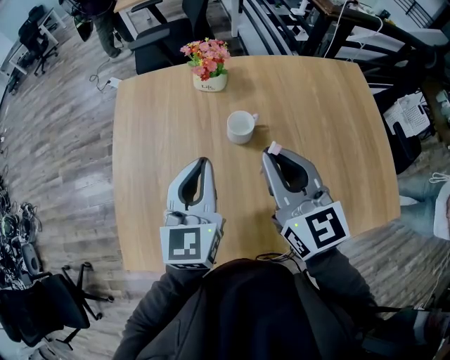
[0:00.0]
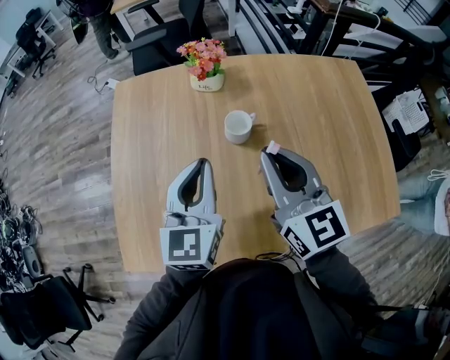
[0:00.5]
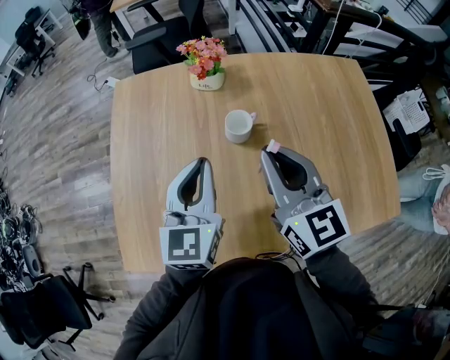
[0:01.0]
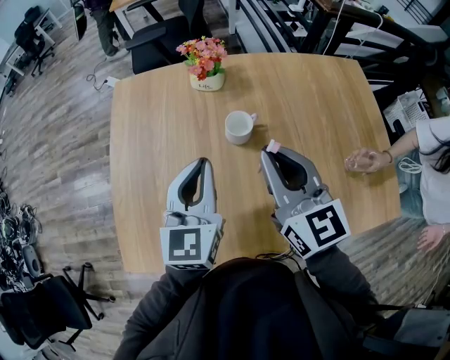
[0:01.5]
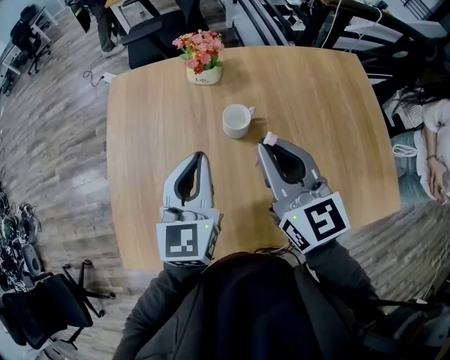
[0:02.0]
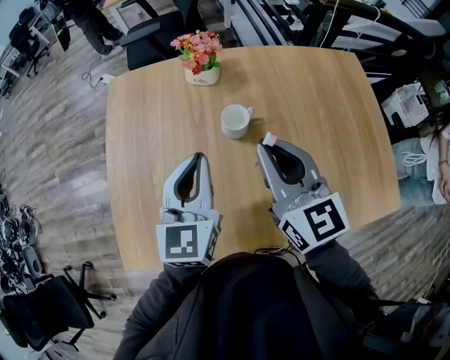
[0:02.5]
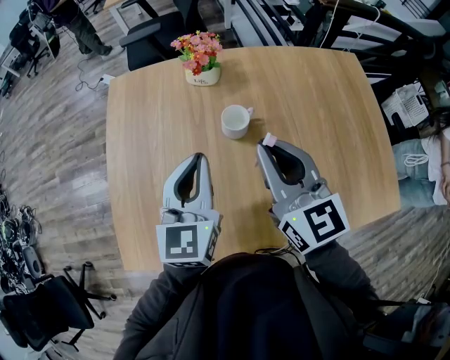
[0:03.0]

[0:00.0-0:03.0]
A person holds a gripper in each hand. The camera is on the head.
0.0 to 3.0 s: Both grippers stay about where they are.

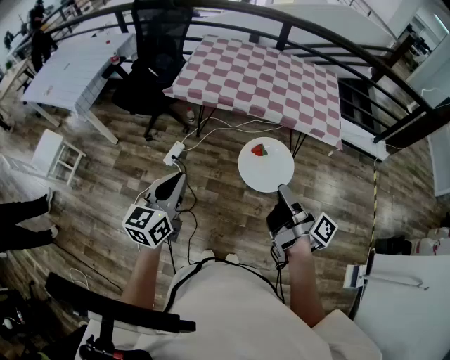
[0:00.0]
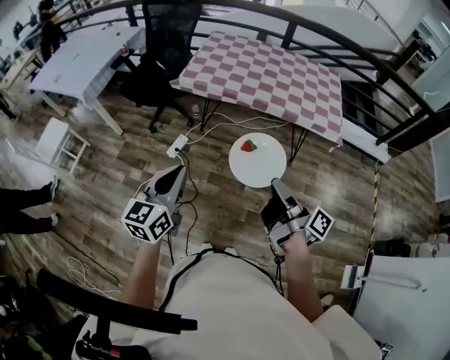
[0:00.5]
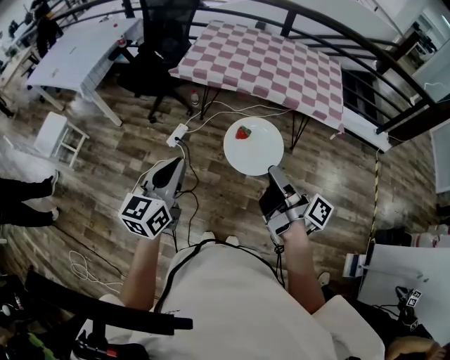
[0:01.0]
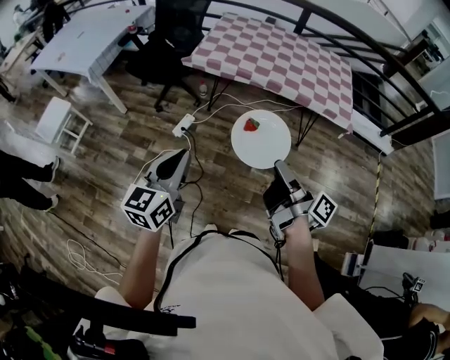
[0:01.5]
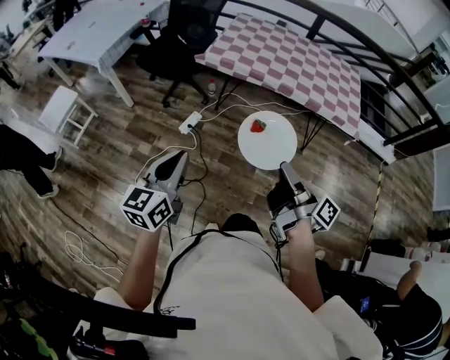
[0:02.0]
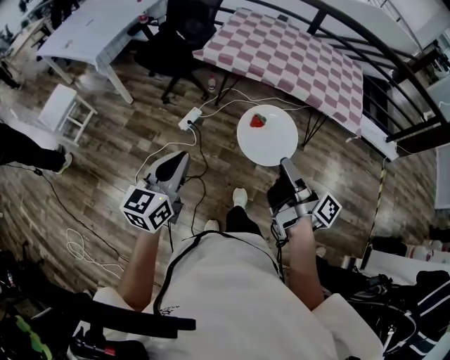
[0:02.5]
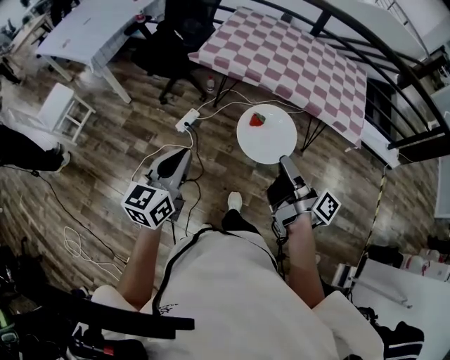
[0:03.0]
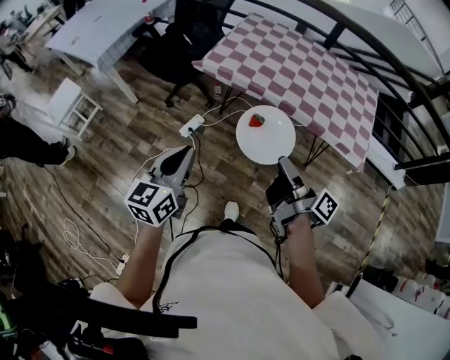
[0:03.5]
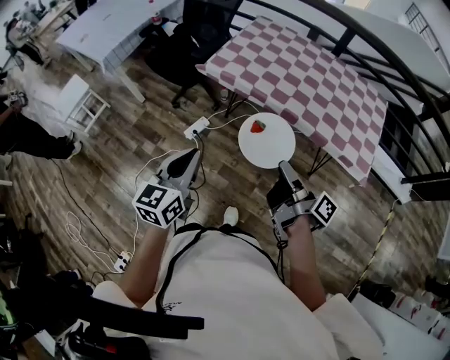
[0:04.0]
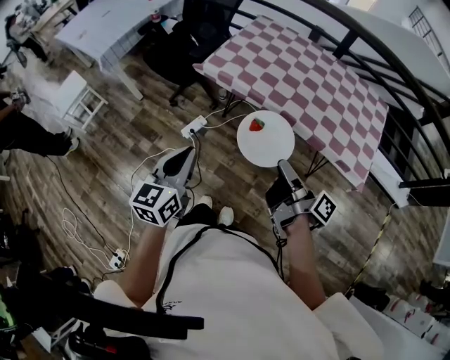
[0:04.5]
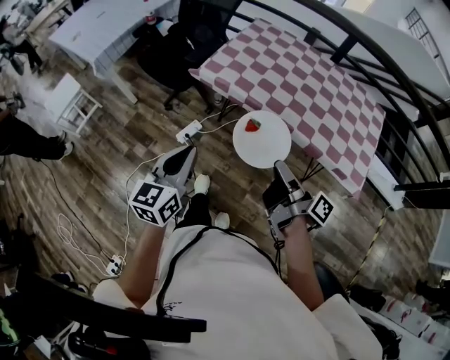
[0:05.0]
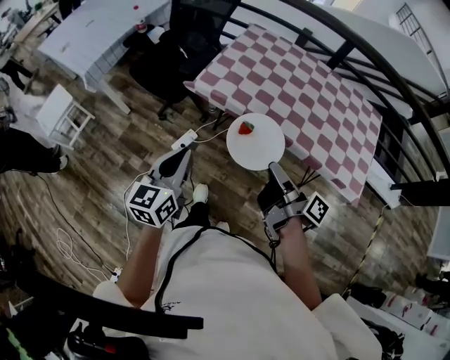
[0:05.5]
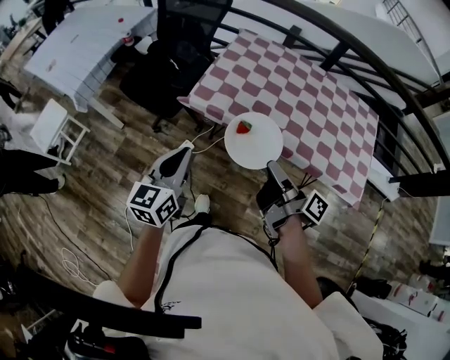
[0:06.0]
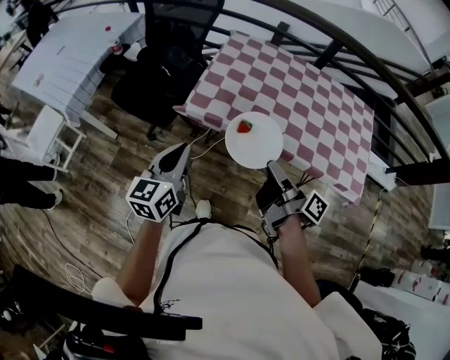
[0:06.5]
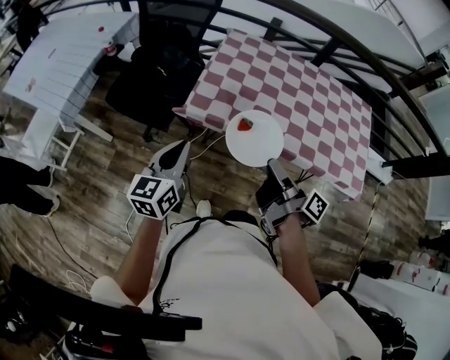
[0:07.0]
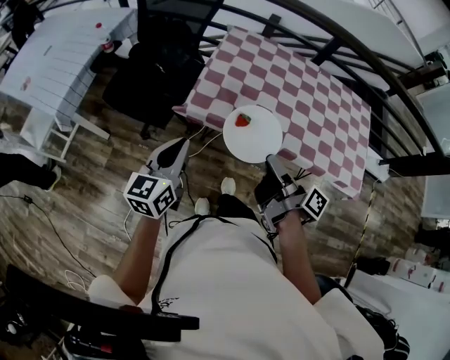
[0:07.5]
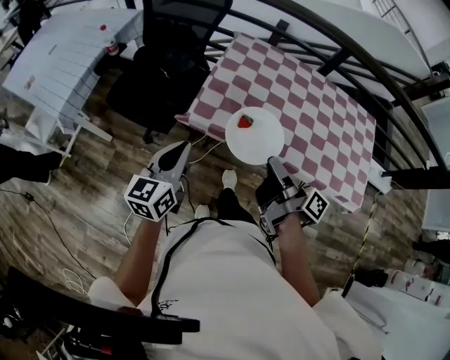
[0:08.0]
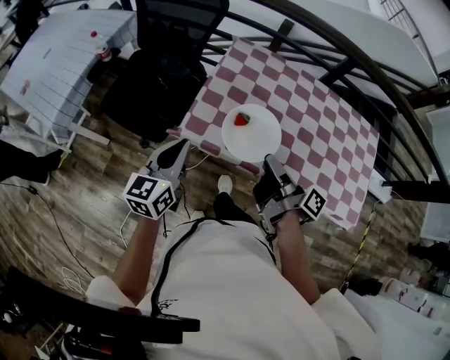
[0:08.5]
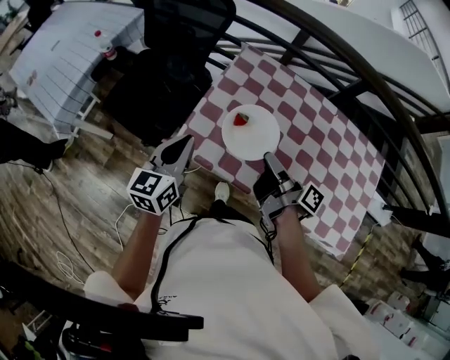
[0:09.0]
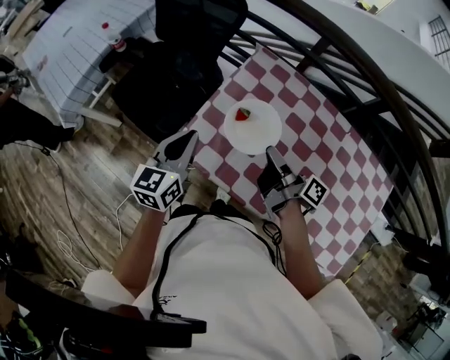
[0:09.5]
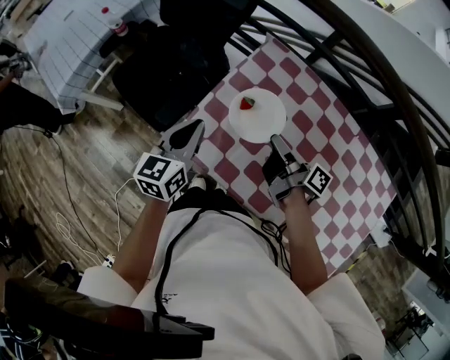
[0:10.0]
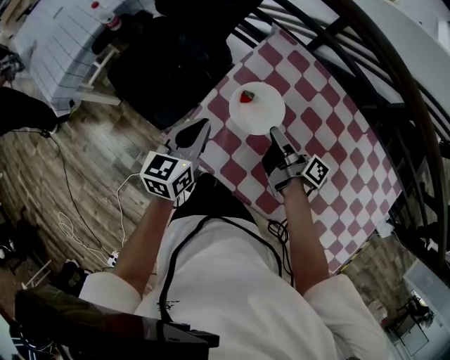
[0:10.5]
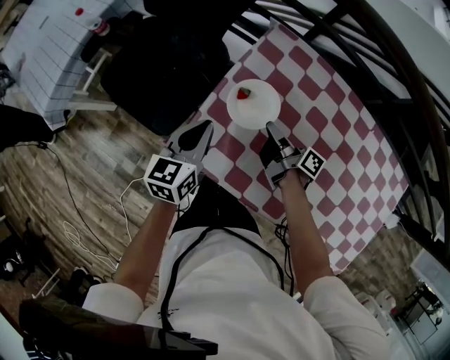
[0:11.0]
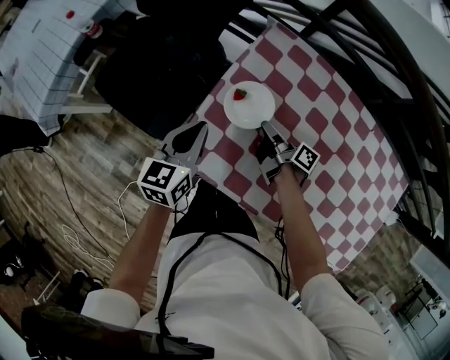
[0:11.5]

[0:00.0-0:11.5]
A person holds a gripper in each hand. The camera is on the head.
0.0 to 2.0 s: The left gripper ends up about 15 cm from where it was.
2.0 to 4.0 s: The left gripper moves roughly 25 cm.
4.0 to 6.0 s: The left gripper changes place by roughly 25 cm.
6.0 to 7.5 s: The left gripper ends up roughly 15 cm from where it was.
7.5 to 9.5 s: The left gripper ends up some 30 cm from where it was.
9.5 to 11.5 s: The left gripper heads downward, covering about 10 cm.

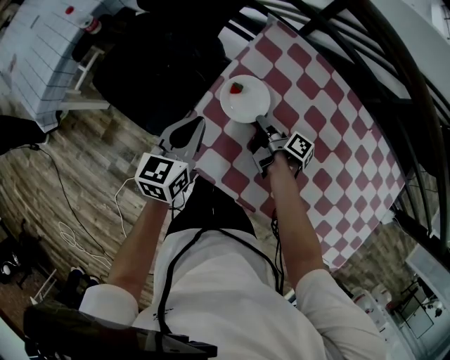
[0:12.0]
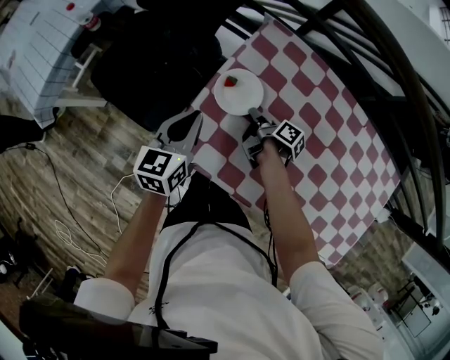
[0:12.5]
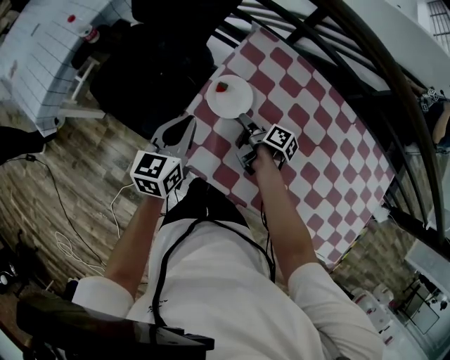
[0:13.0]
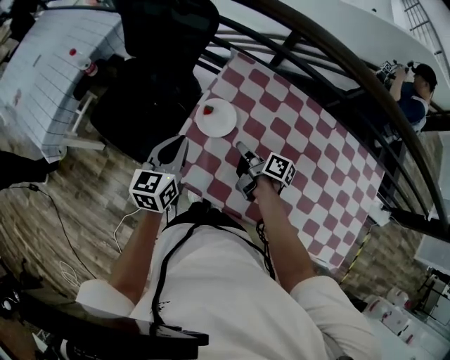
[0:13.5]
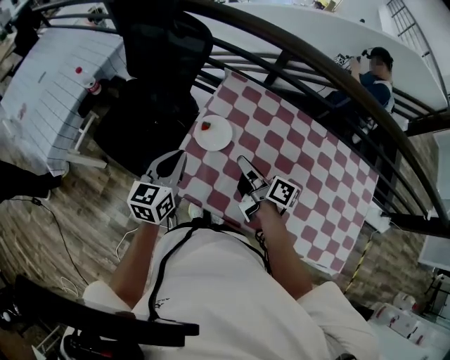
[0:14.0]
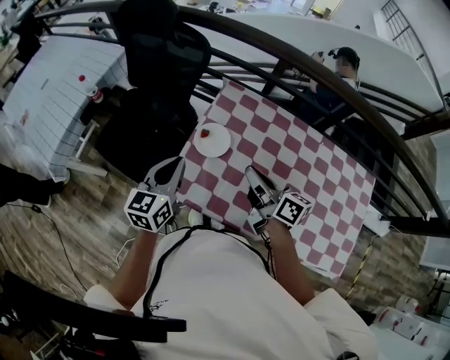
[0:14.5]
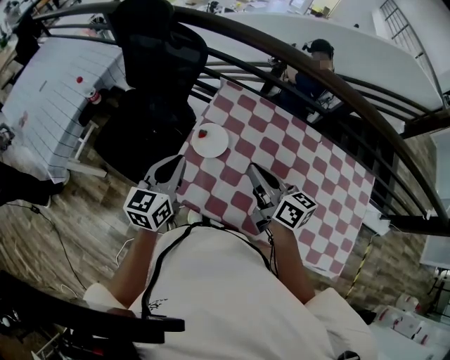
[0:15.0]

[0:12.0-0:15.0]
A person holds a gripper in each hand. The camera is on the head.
12.0 to 13.5 s: The left gripper is displaced upward by approximately 5 cm.
13.5 to 15.0 s: The left gripper moves upward, about 5 cm.

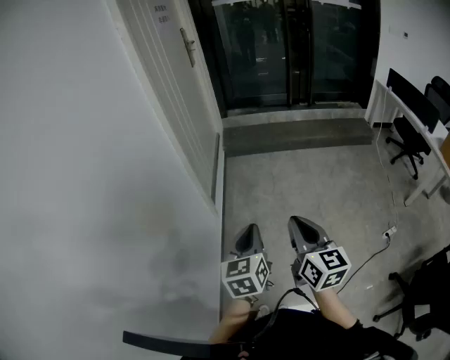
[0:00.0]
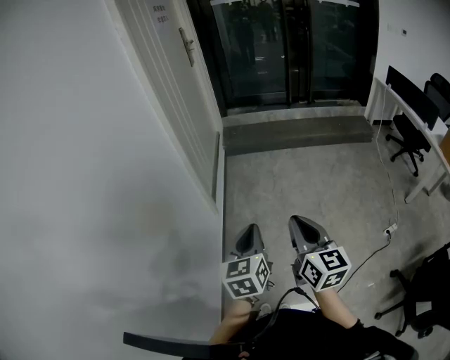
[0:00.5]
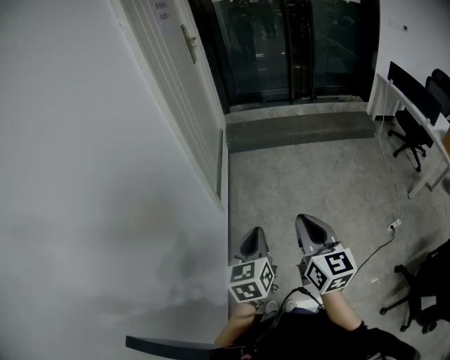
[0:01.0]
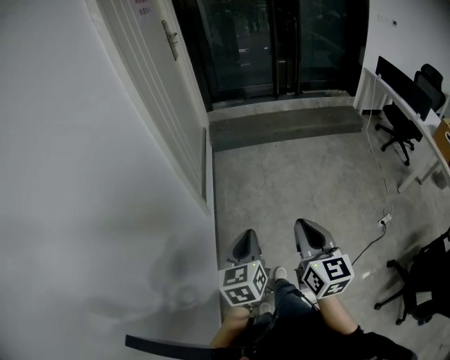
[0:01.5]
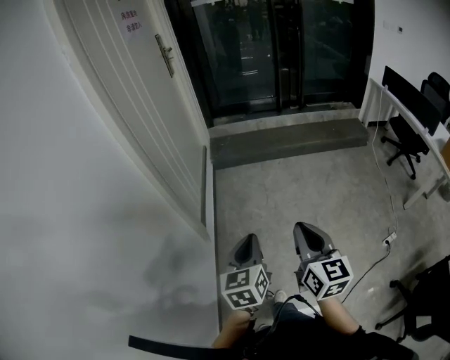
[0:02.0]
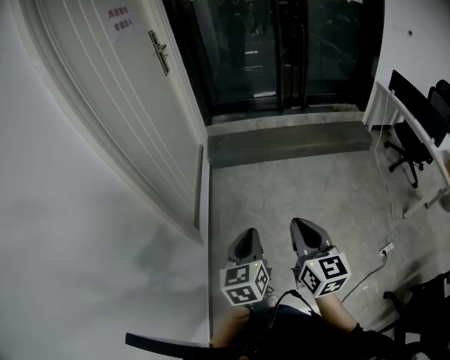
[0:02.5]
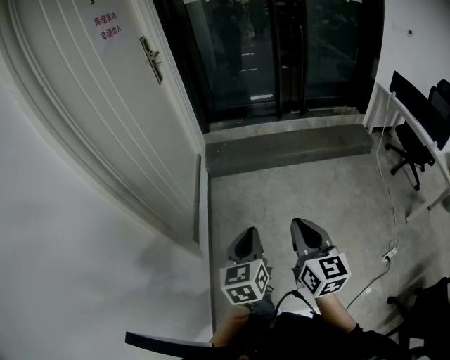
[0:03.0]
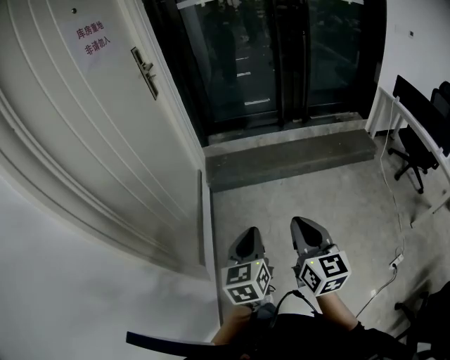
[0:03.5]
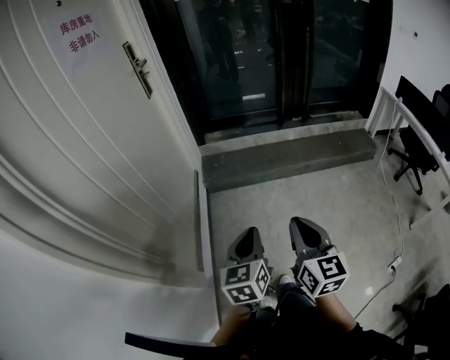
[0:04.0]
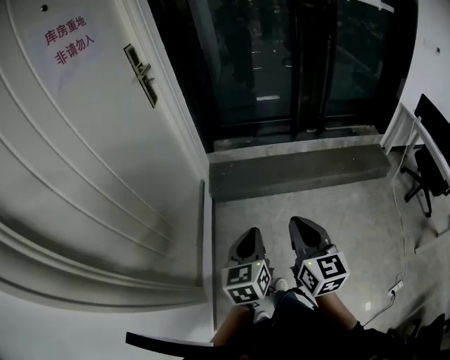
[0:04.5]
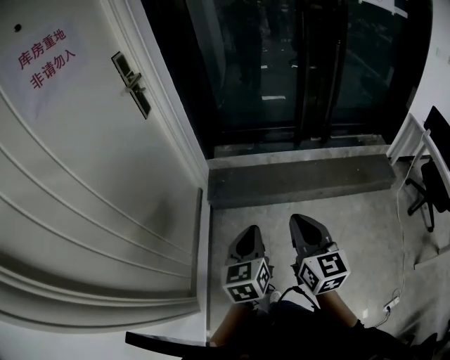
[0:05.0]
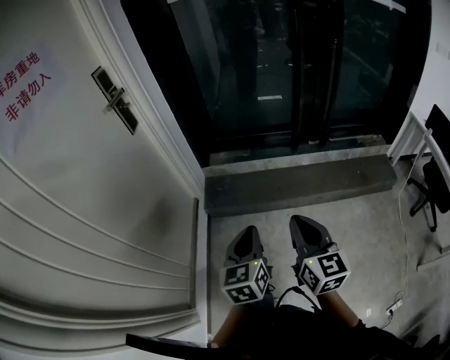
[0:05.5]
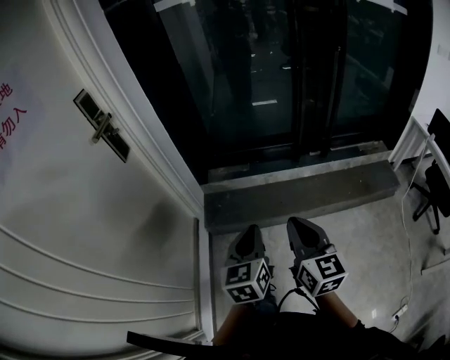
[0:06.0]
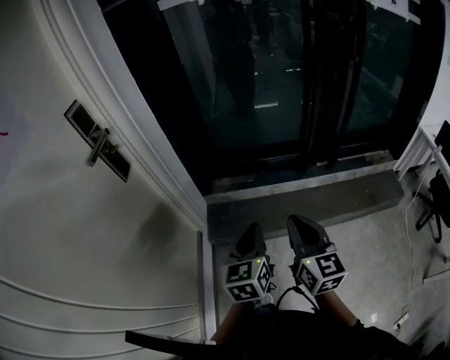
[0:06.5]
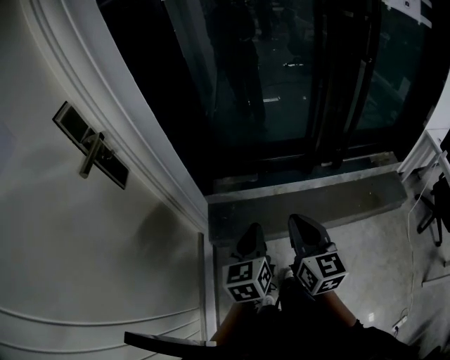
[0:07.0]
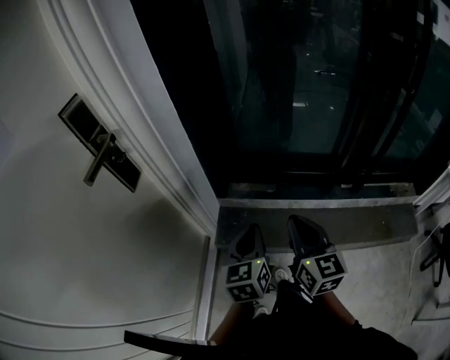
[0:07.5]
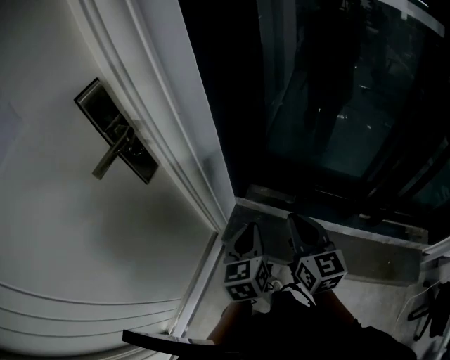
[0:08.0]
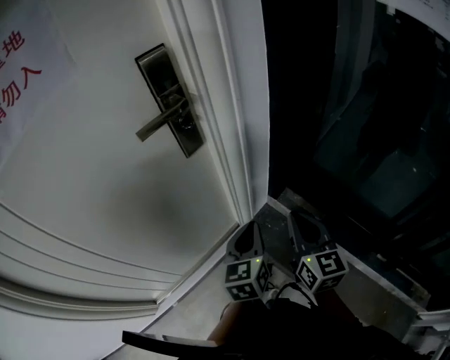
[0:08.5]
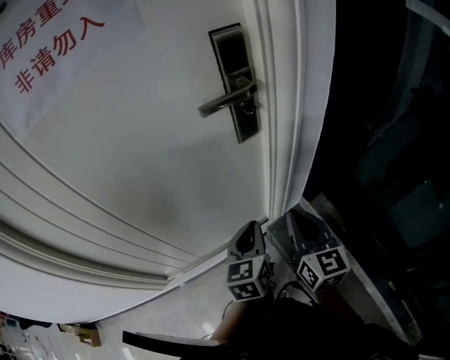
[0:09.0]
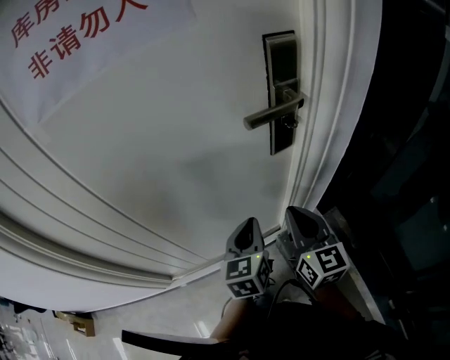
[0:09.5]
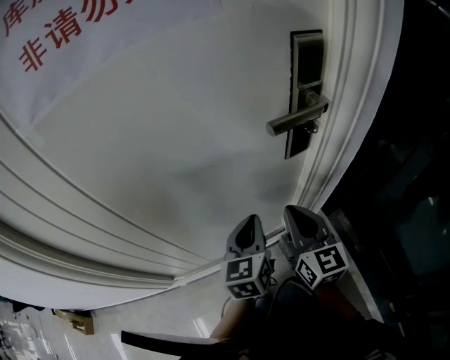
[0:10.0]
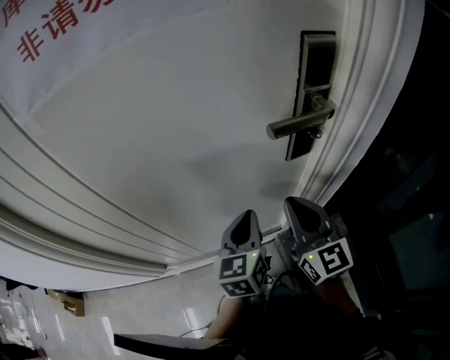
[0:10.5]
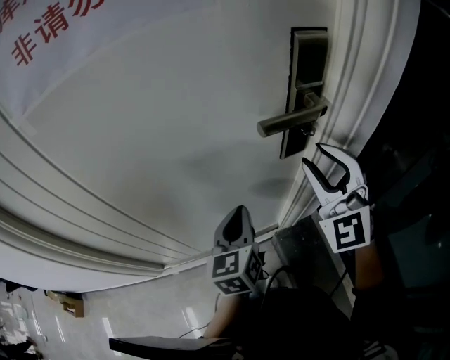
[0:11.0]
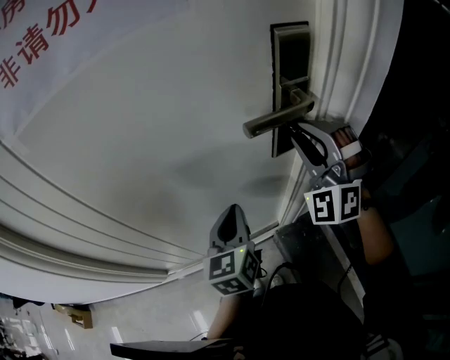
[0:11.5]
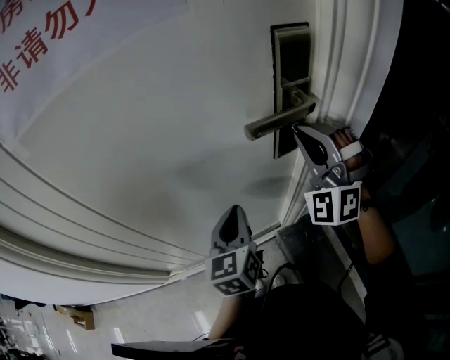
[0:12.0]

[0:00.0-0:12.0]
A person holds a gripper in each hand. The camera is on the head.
0.0 to 2.0 s: The grippers both shift forward by approximately 15 cm.
2.0 to 4.0 s: The two grippers go approximately 35 cm forward.
4.0 to 6.0 s: Both grippers are carried forward, about 40 cm.
6.0 to 8.0 s: The left gripper changes place by roughly 35 cm, and changes its angle by approximately 30 degrees. The right gripper moves about 40 cm, and rotates approximately 20 degrees.
8.0 to 10.0 s: The right gripper moves roughly 30 cm, and changes its angle by approximately 50 degrees; the left gripper changes place by about 30 cm, and turns by some 50 degrees.
10.0 to 12.0 s: The right gripper shifts about 15 cm upward, forward and to the right, rotates around the line of its fingers by some 80 degrees, counterclockwise from behind, and opens and closes again.
